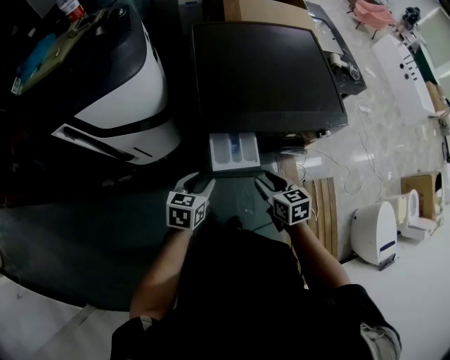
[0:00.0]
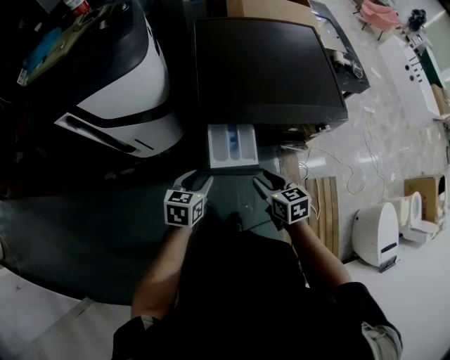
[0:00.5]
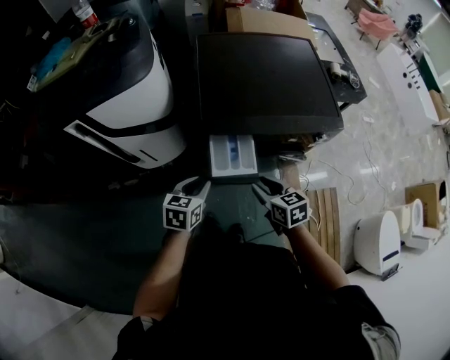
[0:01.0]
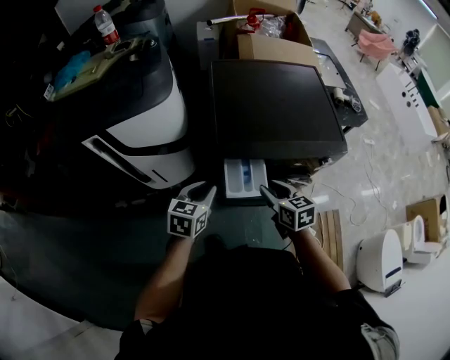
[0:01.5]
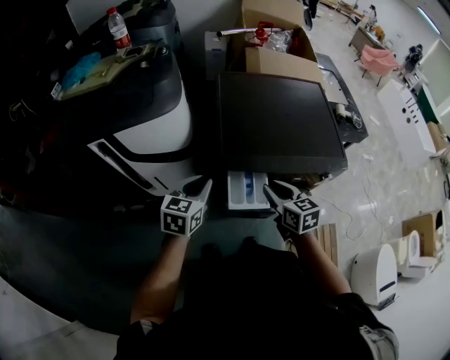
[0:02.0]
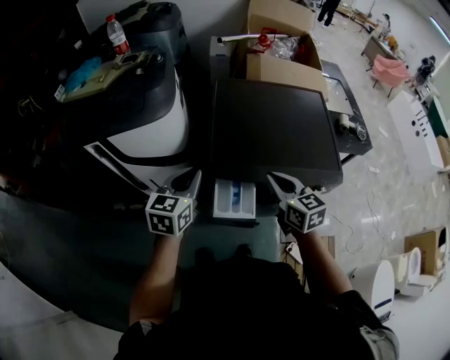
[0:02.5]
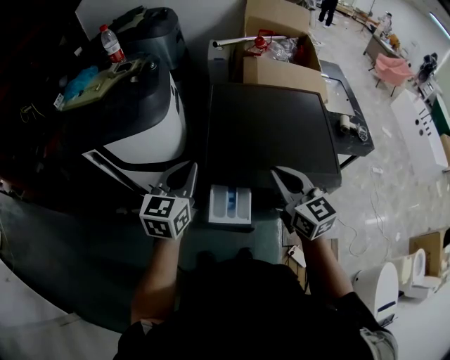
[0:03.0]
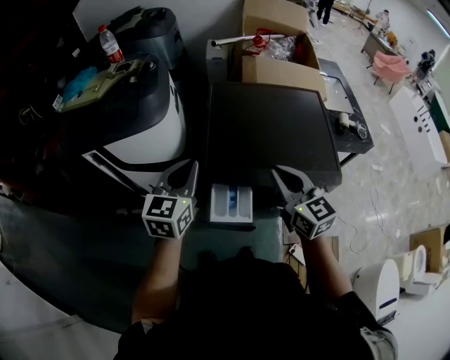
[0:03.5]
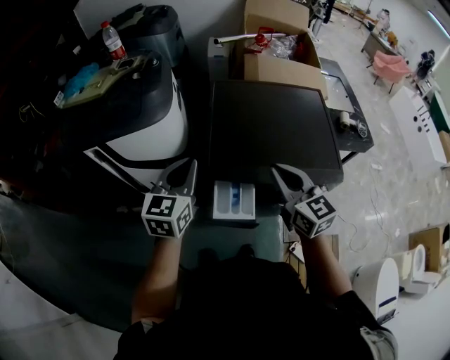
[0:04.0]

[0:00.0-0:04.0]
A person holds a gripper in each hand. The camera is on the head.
0:00.0 to 0:02.0: The left gripper shifts approximately 15 cm upward, to the left and forward, and closes its fingers. The right gripper shifts about 15 cm upward and forward.
0:02.0 to 0:04.0: The right gripper shifts approximately 15 cm upward and to the right, rotates about 20 degrees, and closes its fingers. Meanwhile the left gripper moves upward, about 10 cm.

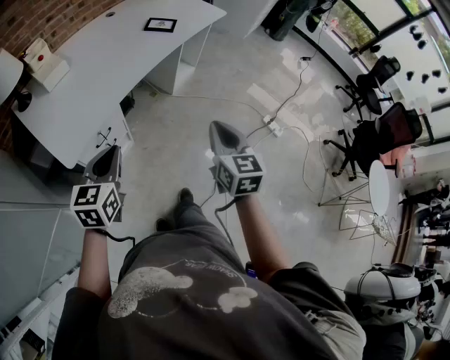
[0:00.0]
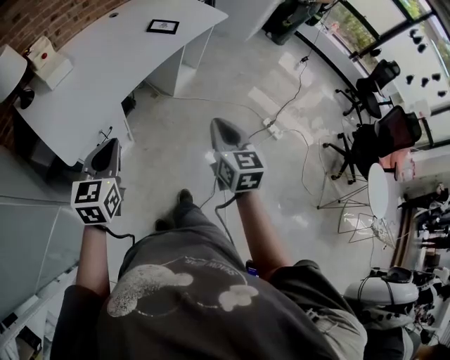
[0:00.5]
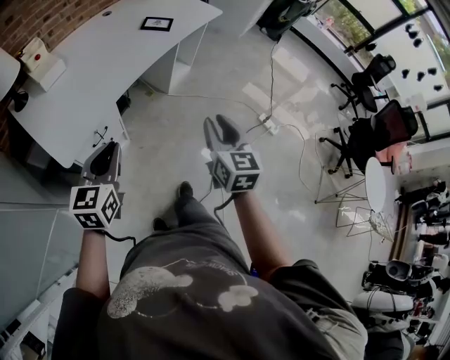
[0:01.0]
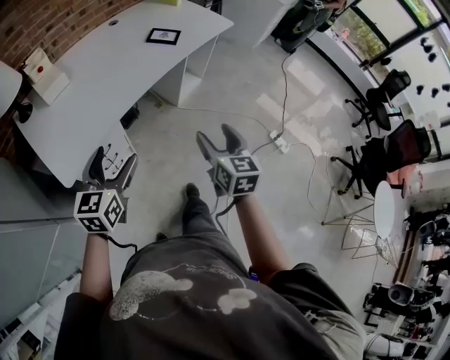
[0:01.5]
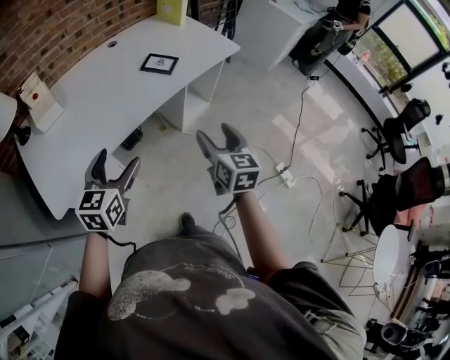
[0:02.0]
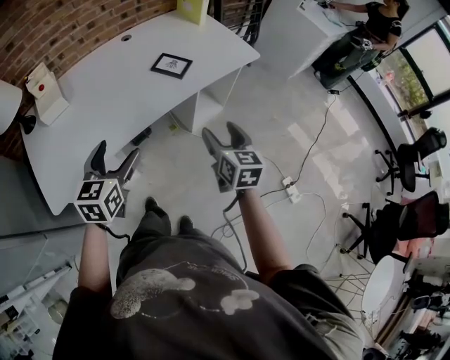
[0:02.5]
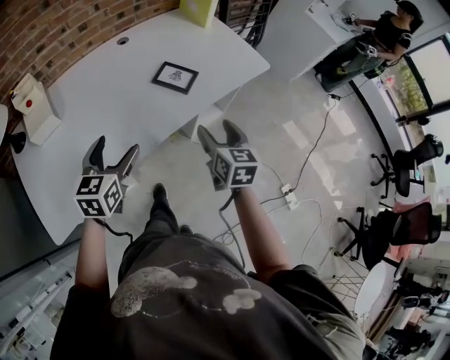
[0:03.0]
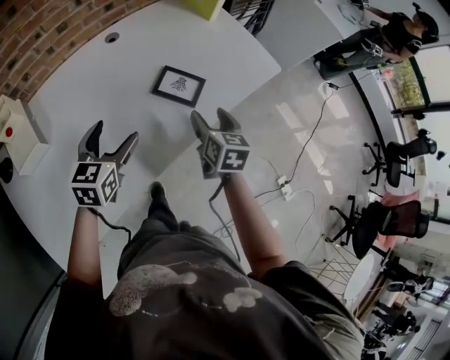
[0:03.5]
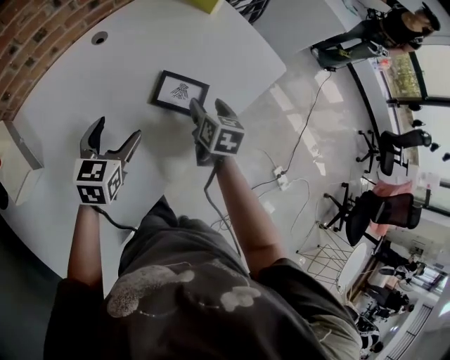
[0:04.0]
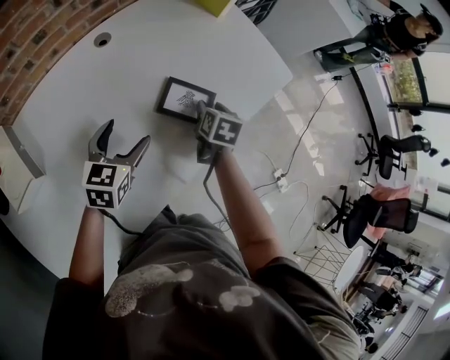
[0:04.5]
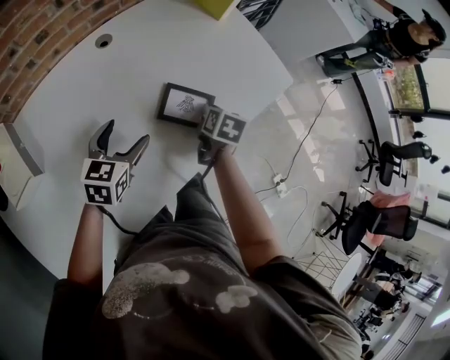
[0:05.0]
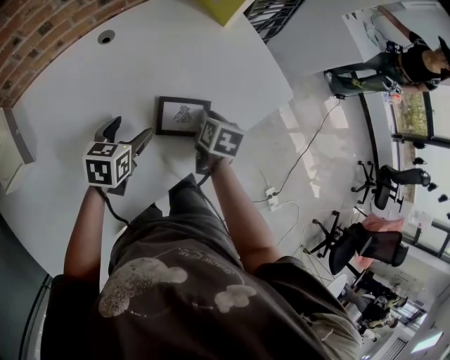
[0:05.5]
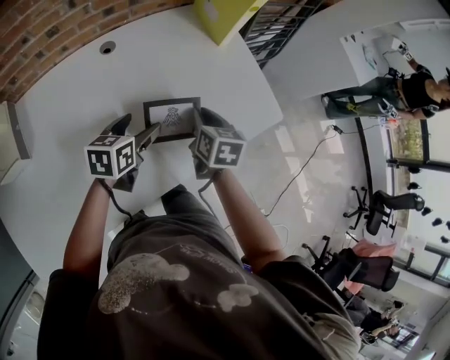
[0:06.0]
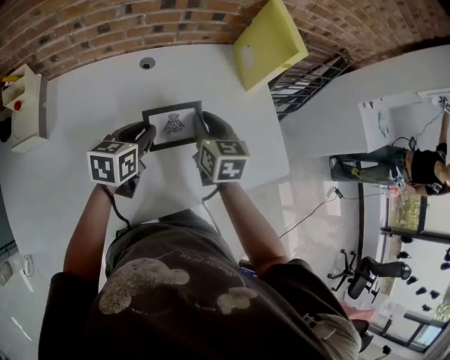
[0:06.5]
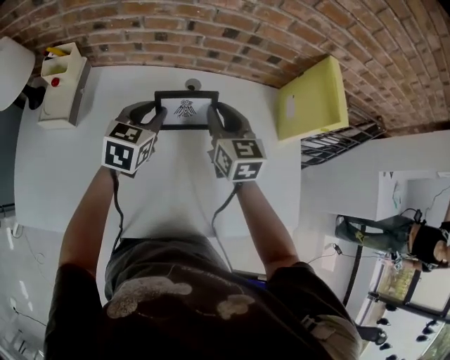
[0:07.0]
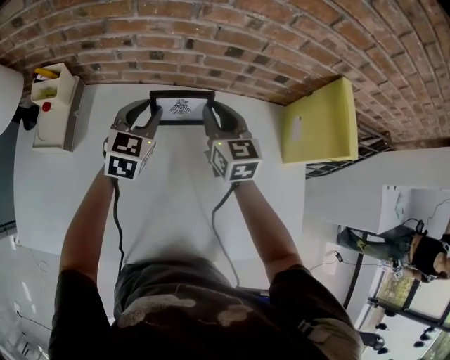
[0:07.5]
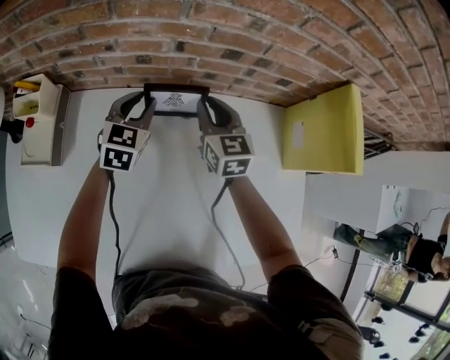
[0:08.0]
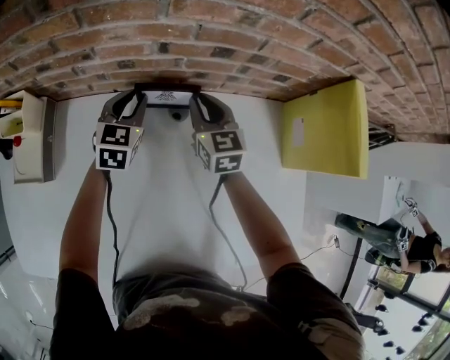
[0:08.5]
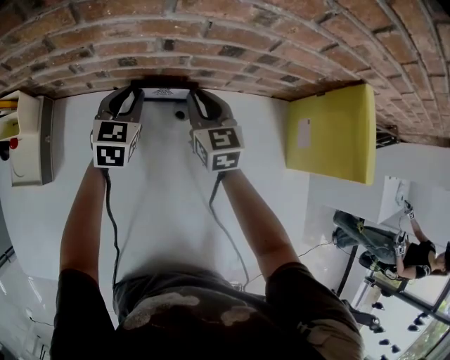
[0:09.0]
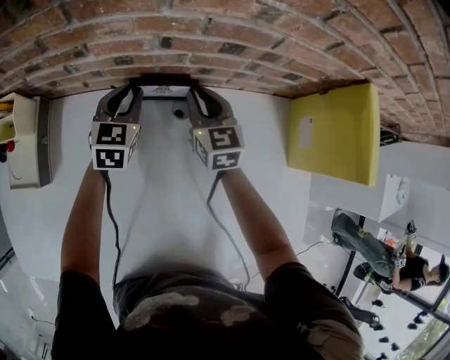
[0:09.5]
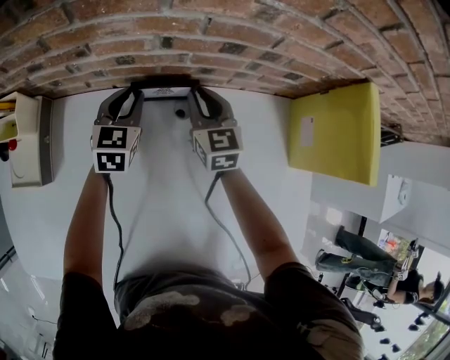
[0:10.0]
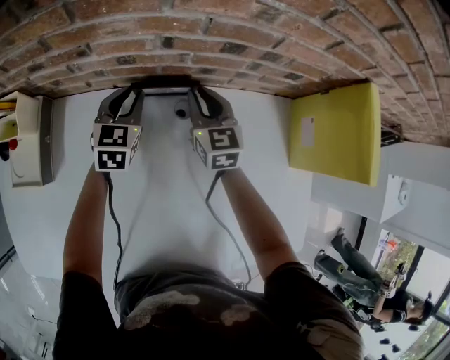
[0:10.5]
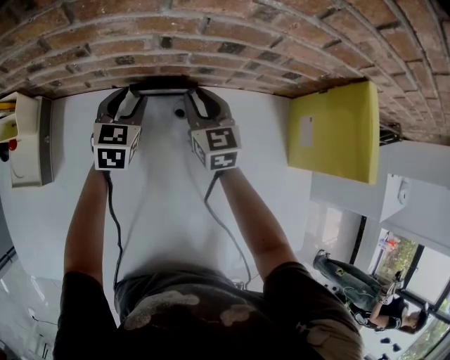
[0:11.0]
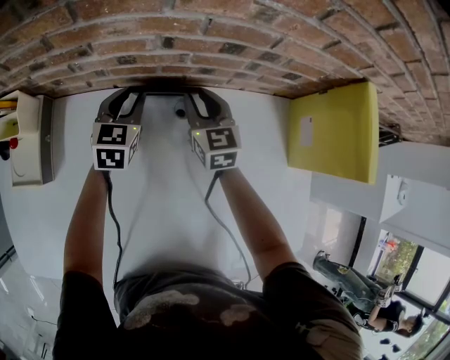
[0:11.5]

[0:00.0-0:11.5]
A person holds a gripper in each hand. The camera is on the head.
0:00.0 to 0:02.0: The right gripper shifts about 25 cm forward, and opens, while the left gripper heads forward and to the right, covering some 25 cm, and opens up.
0:02.0 to 0:04.0: The grippers both shift forward by about 40 cm. The right gripper turns by about 30 degrees.
0:04.0 to 0:06.0: The right gripper moves forward, roughly 10 cm, and closes up; the left gripper is displaced forward and to the right by about 15 cm, and changes its angle by roughly 20 degrees.
0:06.0 to 0:07.5: The right gripper shifts by about 35 cm, and rotates about 50 degrees. The left gripper shifts by some 30 cm, swivels roughly 40 degrees, and closes its fingers.
0:07.5 to 0:09.5: The grippers both shift forward and downward by approximately 15 cm.
0:09.5 to 0:11.5: The grippers move only a little.

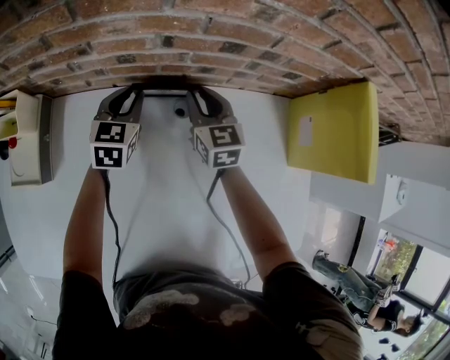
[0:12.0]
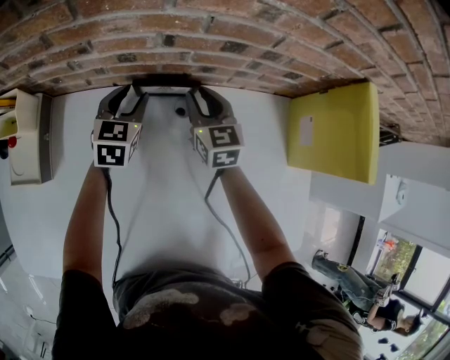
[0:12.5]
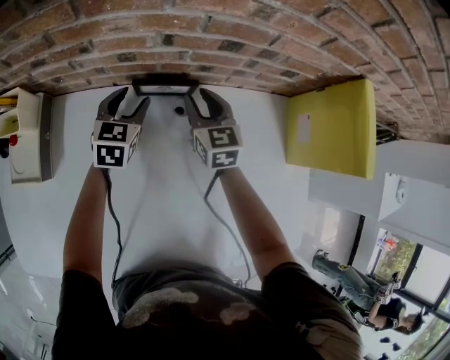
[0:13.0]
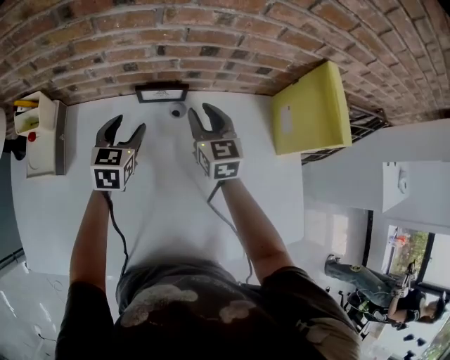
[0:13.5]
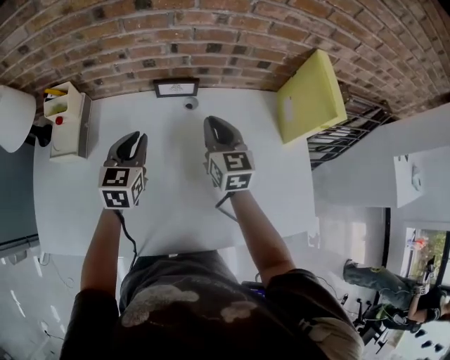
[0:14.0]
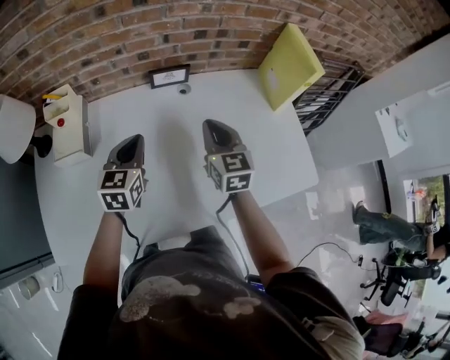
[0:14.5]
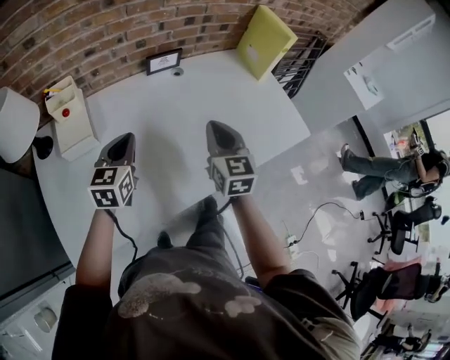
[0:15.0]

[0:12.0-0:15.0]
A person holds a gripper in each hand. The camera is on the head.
0:12.0 to 0:13.5: The left gripper travels backward by approximately 10 cm, and opens its fingers, while the right gripper shifts some 10 cm backward and upward.
0:13.5 to 0:15.0: Both grippers move backward, approximately 30 cm. The right gripper rotates approximately 20 degrees, and closes up. The left gripper changes its angle by roughly 20 degrees, and closes.

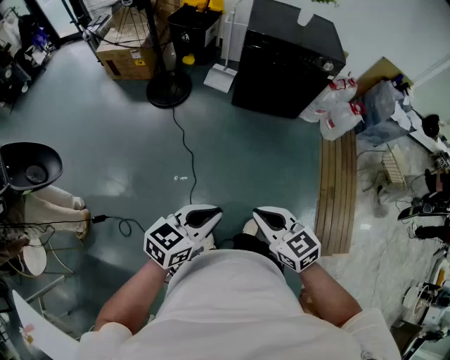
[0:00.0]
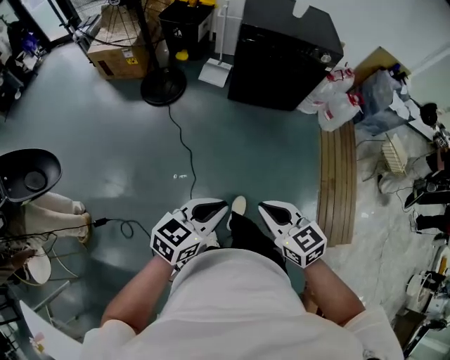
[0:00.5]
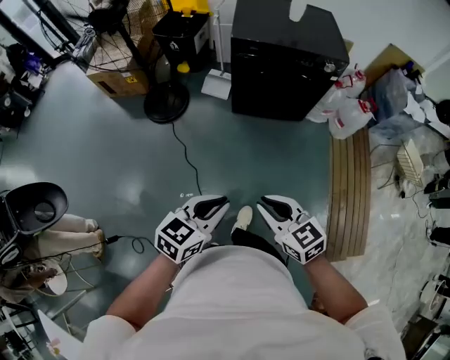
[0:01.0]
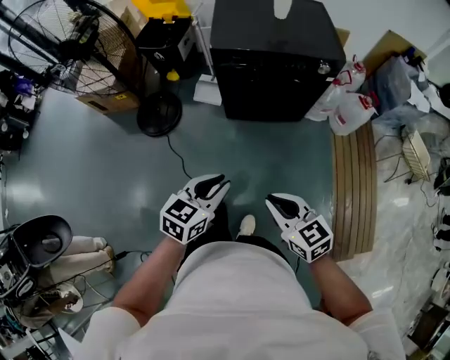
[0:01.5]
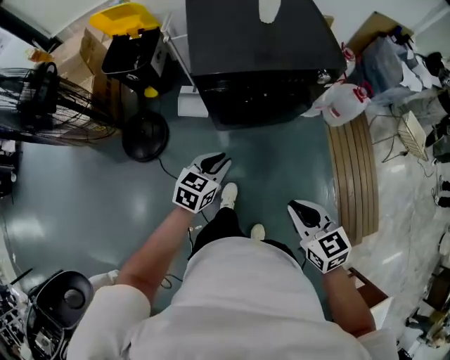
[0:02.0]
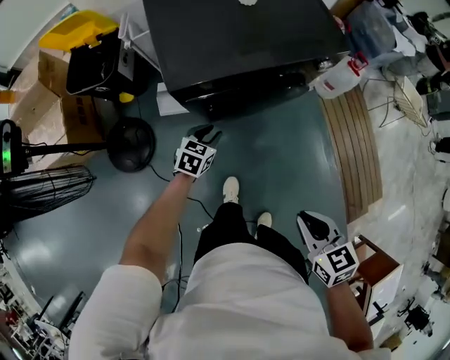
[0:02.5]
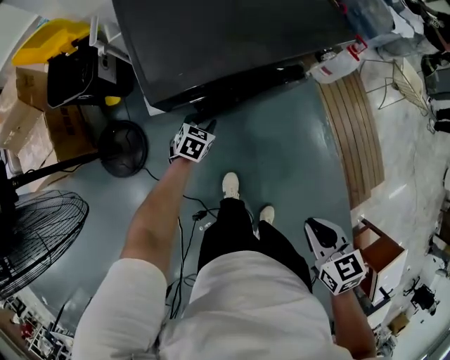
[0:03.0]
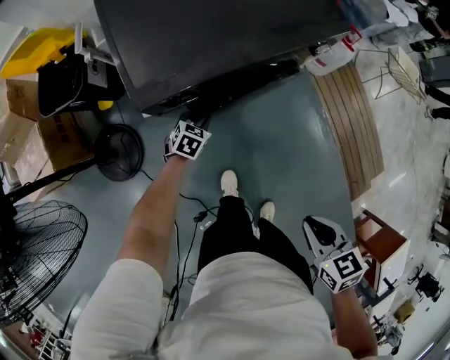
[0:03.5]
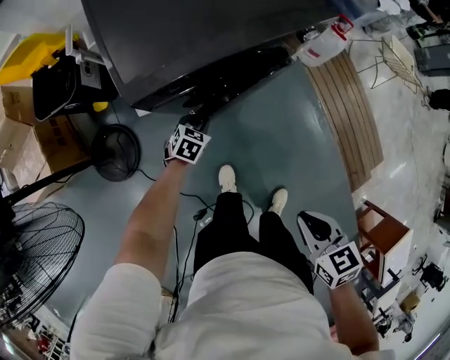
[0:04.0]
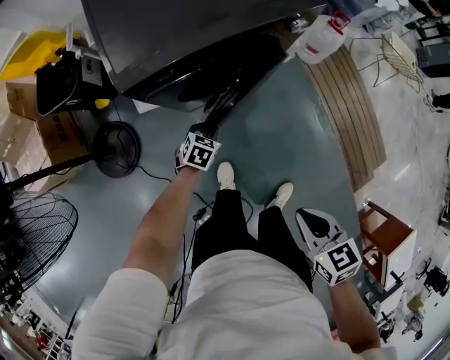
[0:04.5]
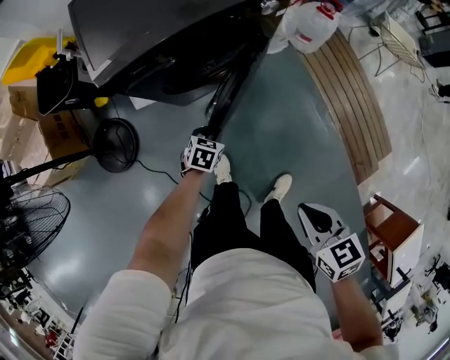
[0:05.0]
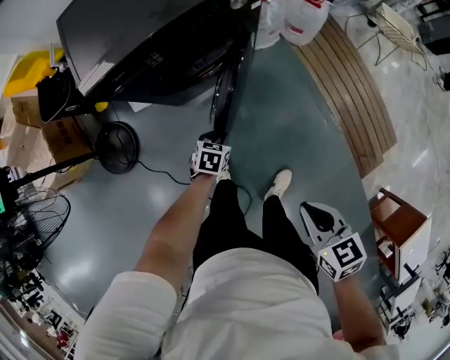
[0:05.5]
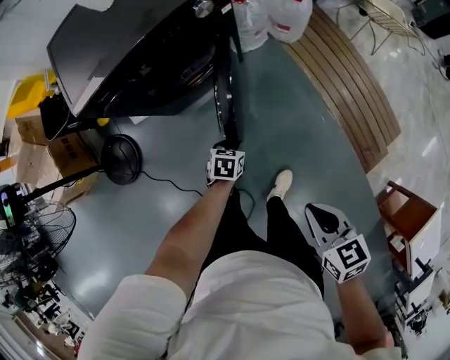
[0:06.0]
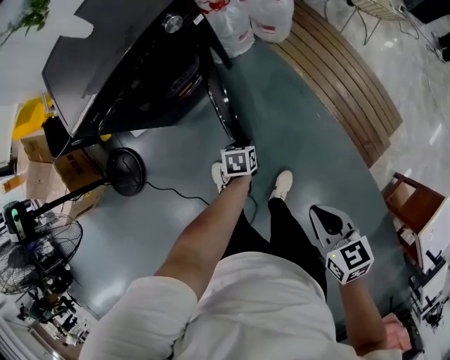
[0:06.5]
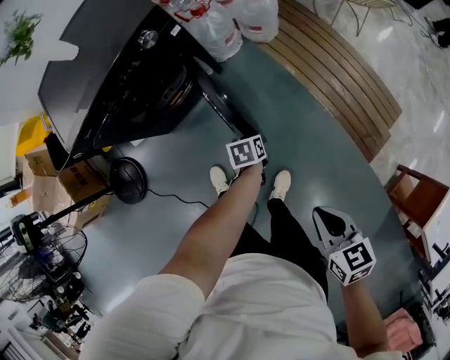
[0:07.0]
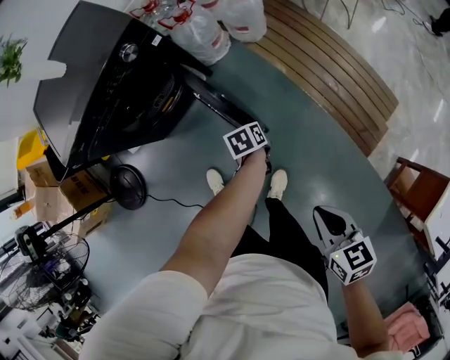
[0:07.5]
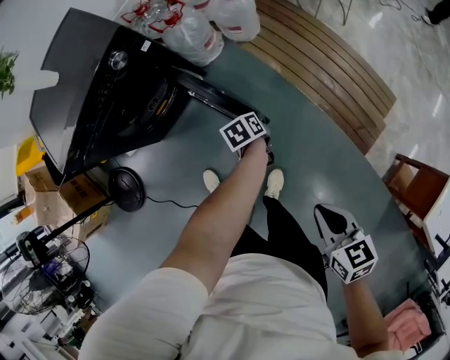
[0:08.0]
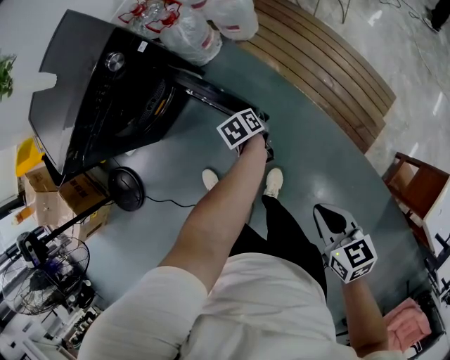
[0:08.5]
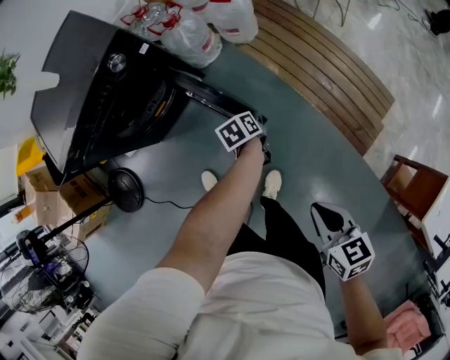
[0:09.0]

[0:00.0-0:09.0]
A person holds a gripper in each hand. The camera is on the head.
0:00.0 to 0:02.0: Both grippers are carried forward, some 50 cm. The right gripper changes its angle by about 30 degrees.
0:02.0 to 0:04.5: The right gripper shifts about 10 cm downward, and rotates approximately 30 degrees, while the left gripper travels downward and forward by roughly 30 cm, and turns by some 30 degrees.
0:04.5 to 0:07.0: The two grippers go approximately 35 cm to the right. The left gripper swivels some 30 degrees.
0:07.0 to 0:09.0: The left gripper is displaced to the right and forward by some 10 cm; the right gripper goes about 10 cm to the right.
